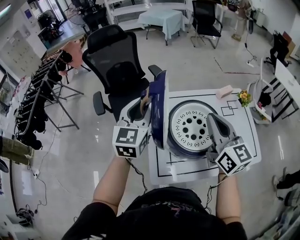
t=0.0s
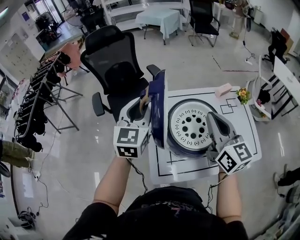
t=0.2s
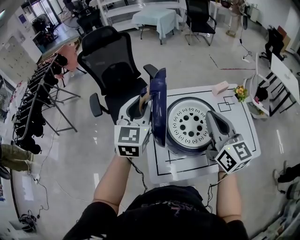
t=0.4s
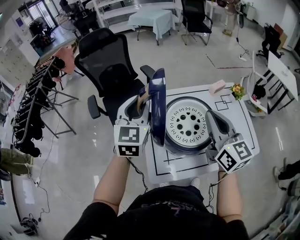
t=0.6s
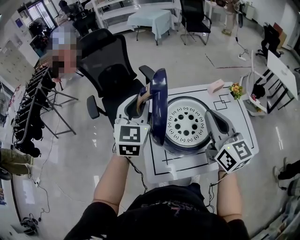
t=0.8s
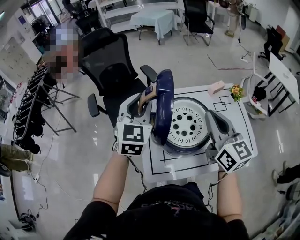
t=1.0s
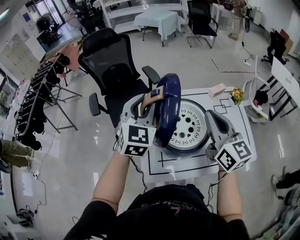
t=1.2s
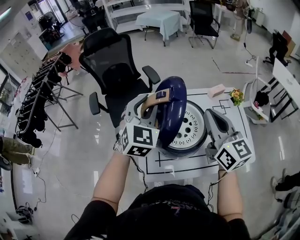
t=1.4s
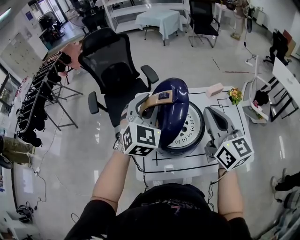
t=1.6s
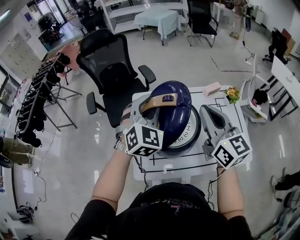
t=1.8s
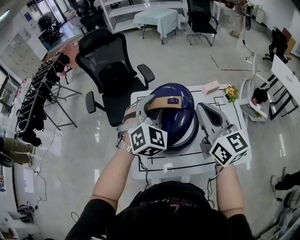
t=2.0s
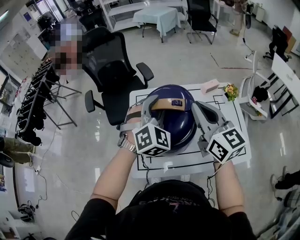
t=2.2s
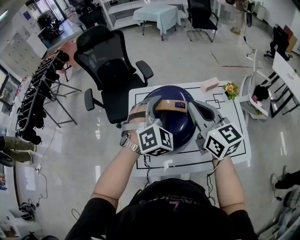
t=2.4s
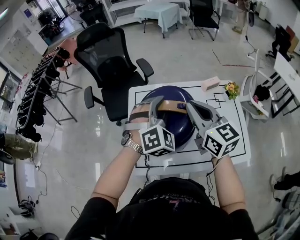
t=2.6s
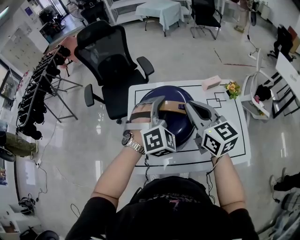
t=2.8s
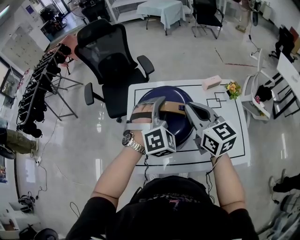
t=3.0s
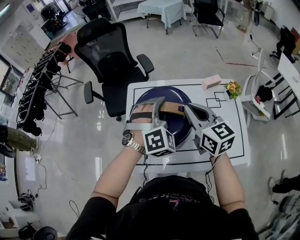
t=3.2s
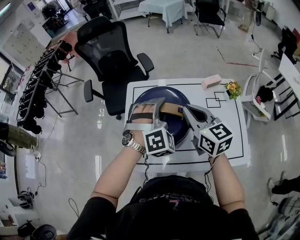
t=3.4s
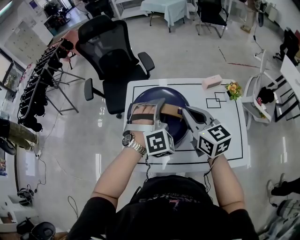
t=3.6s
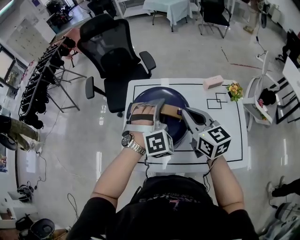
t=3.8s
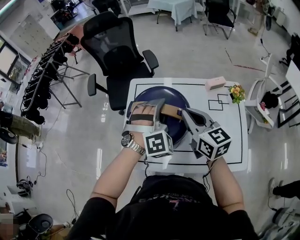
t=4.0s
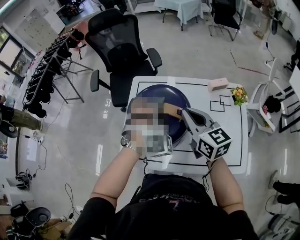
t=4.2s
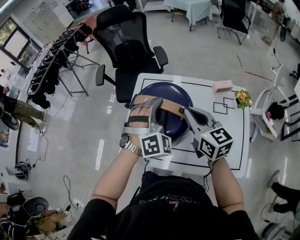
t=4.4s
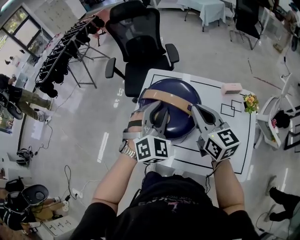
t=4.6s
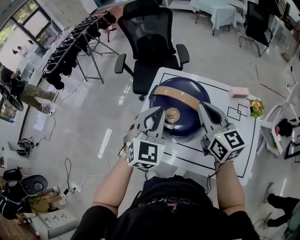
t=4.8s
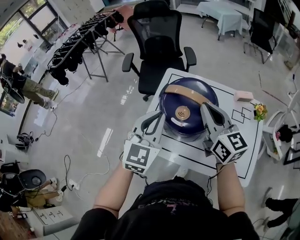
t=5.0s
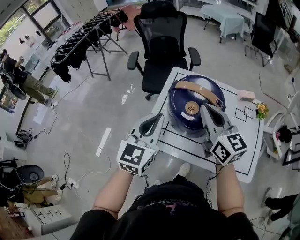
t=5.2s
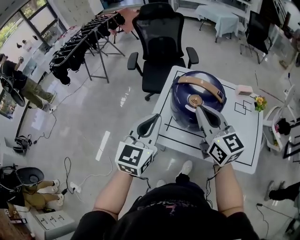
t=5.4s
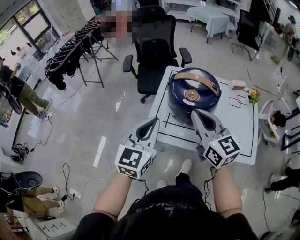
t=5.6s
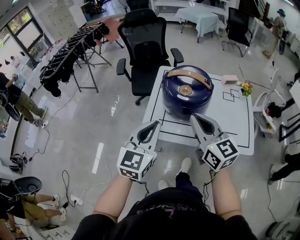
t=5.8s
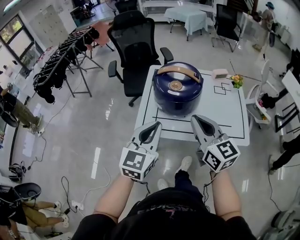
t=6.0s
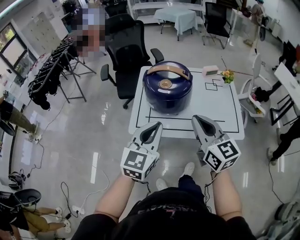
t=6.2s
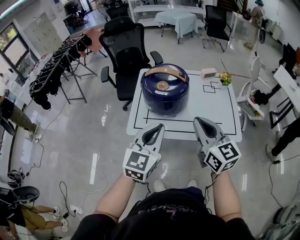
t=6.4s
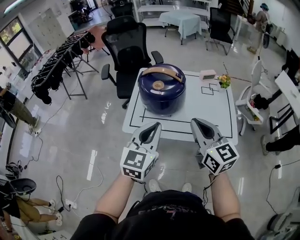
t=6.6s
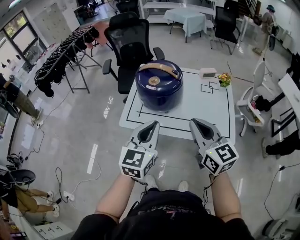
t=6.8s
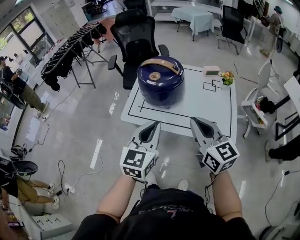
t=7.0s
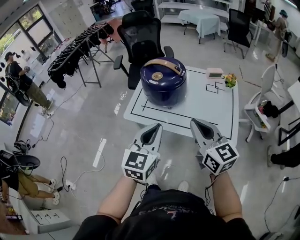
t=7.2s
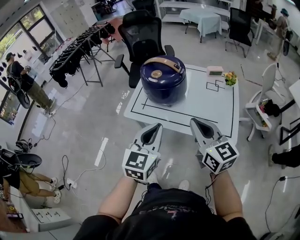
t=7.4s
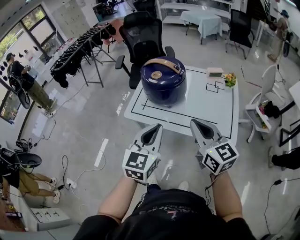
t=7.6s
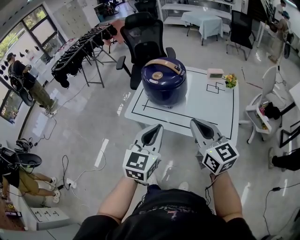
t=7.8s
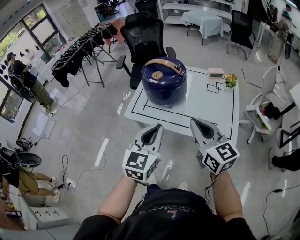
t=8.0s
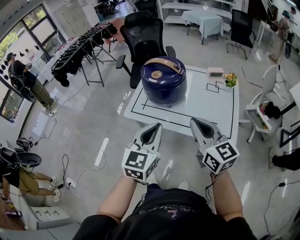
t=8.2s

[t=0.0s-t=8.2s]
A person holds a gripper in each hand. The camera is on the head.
t=0.0s to t=1.6s: The left gripper travels to the right by about 10 cm, and changes its angle by roughly 30 degrees, while the right gripper moves to the right, some 10 cm.
t=1.6s to t=3.2s: The left gripper shifts approximately 15 cm to the right and downward, and rotates some 30 degrees. The right gripper shifts approximately 10 cm downward.
t=3.2s to t=5.0s: The right gripper is displaced to the left by roughly 5 cm. Meanwhile the left gripper moves to the left and backward, some 15 cm, twists about 50 degrees counterclockwise, seen from behind, and closes its fingers.
t=5.0s to t=6.6s: Both grippers travel together backward, approximately 25 cm.
t=6.6s to t=8.2s: The right gripper is displaced to the right and backward by roughly 10 cm. Meanwhile the left gripper goes roughly 10 cm backward and to the right.

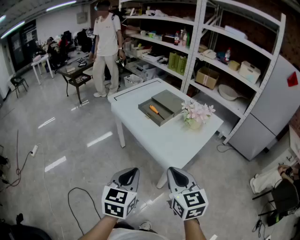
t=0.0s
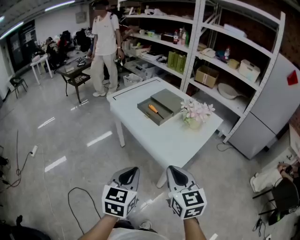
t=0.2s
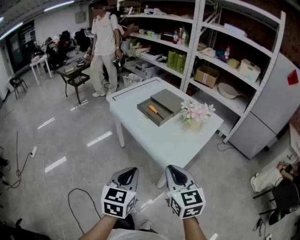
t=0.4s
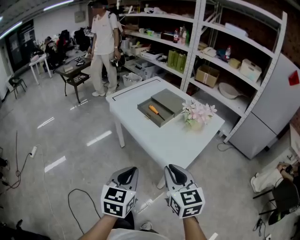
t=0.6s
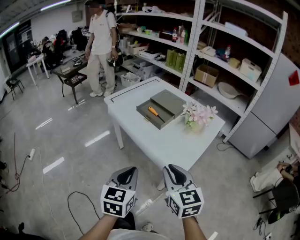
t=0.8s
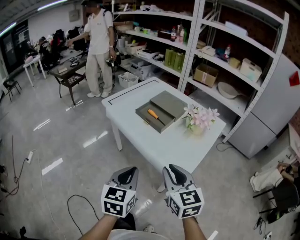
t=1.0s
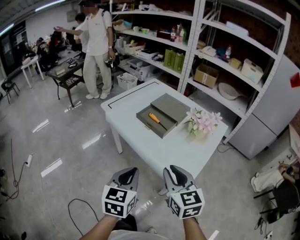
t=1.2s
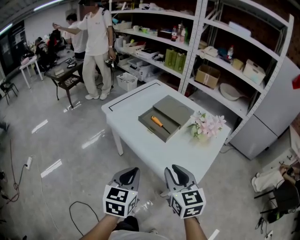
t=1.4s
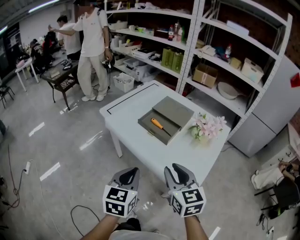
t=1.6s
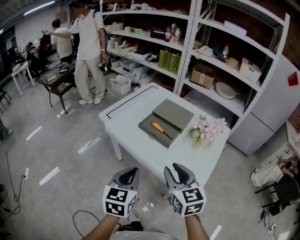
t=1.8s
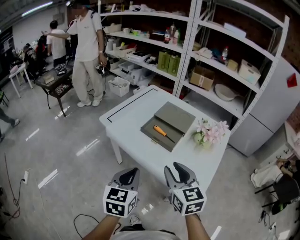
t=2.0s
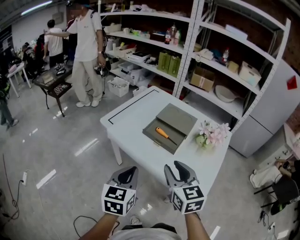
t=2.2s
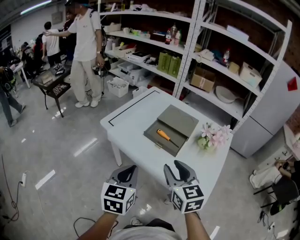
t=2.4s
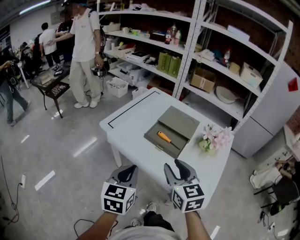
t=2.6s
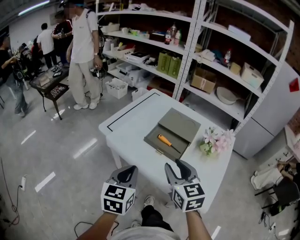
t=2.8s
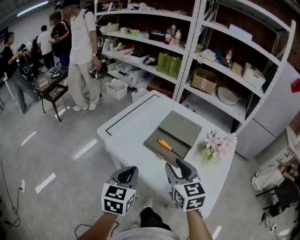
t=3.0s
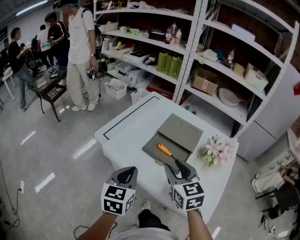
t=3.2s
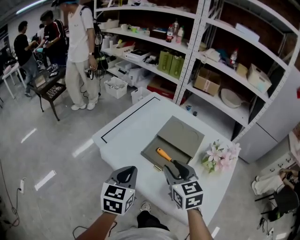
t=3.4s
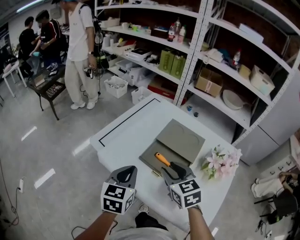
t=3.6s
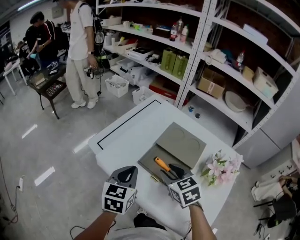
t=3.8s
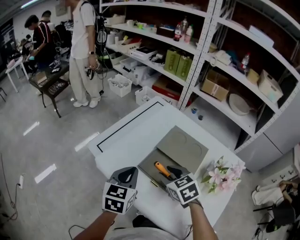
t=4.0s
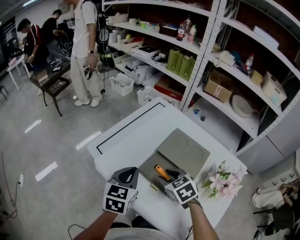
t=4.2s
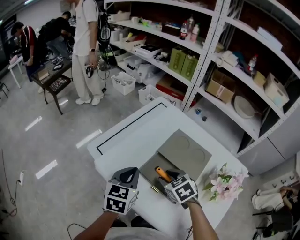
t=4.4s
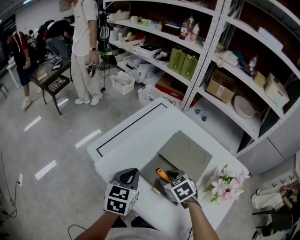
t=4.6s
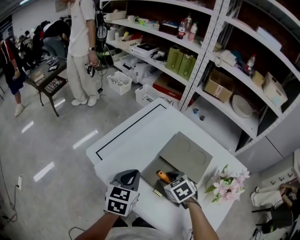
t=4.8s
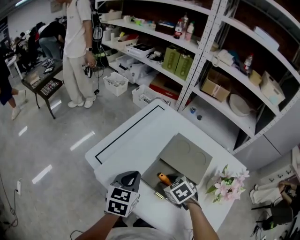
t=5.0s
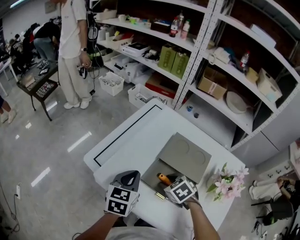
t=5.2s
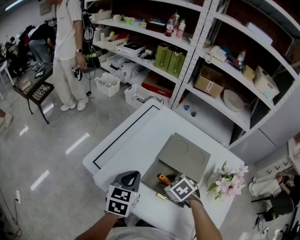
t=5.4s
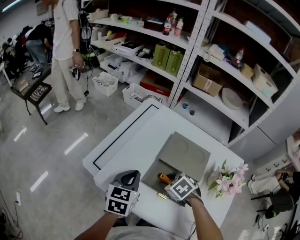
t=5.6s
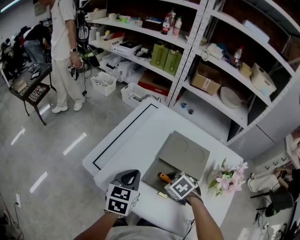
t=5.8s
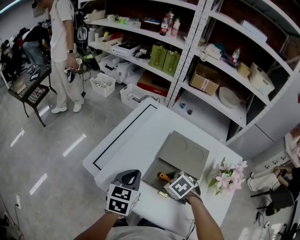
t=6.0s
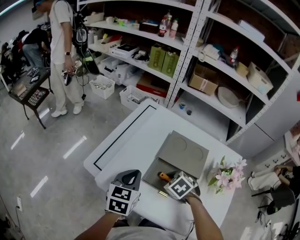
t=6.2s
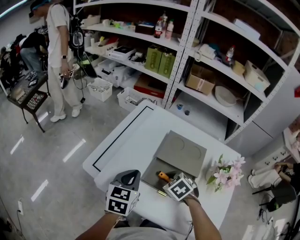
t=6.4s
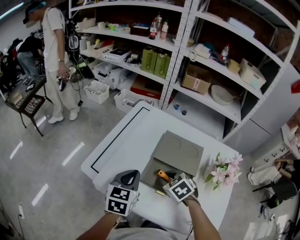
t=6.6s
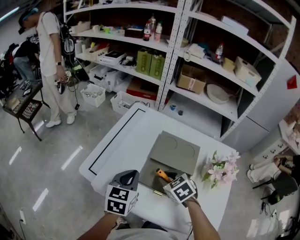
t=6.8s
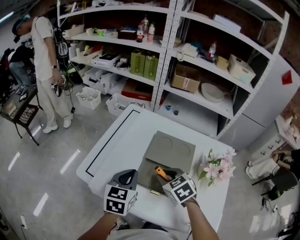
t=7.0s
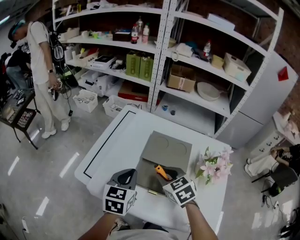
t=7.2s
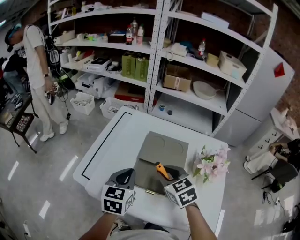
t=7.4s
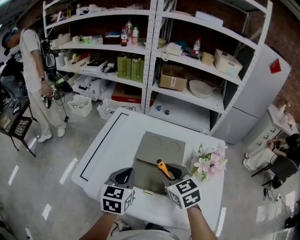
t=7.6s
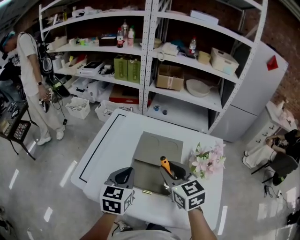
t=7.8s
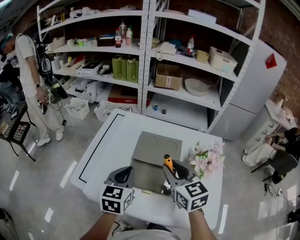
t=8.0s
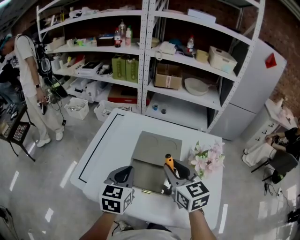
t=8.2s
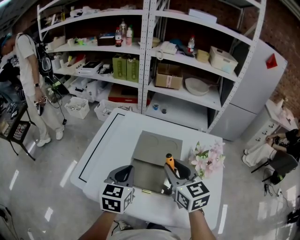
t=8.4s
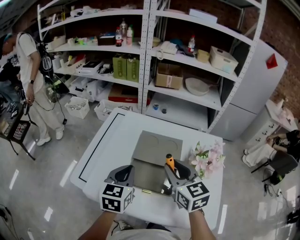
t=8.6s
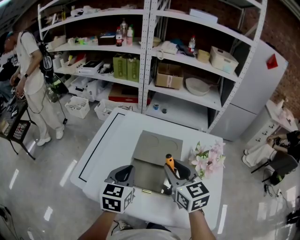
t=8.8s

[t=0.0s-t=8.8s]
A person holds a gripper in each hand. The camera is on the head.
t=0.0s to t=1.4s: The two grippers go approximately 15 cm forward. The right gripper opens up.
t=1.4s to t=3.0s: The grippers both shift forward and to the left by some 20 cm.
t=3.0s to t=4.4s: The left gripper goes approximately 20 cm forward; the right gripper moves forward and downward, some 25 cm, and angles its fingers downward, by about 30 degrees.
t=4.4s to t=5.8s: The left gripper changes place by roughly 5 cm.
t=5.8s to t=7.4s: The left gripper goes approximately 5 cm to the right. The right gripper goes some 15 cm upward, and points its fingers some 30 degrees further upward.
t=7.4s to t=8.8s: The right gripper shifts approximately 10 cm upward and to the right, and turns by some 20 degrees.

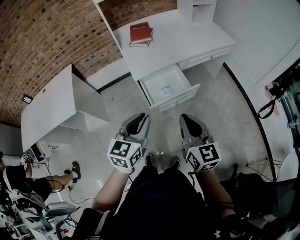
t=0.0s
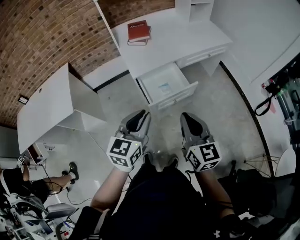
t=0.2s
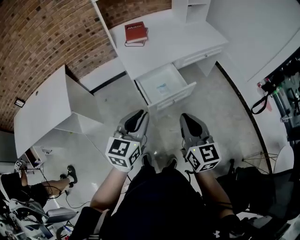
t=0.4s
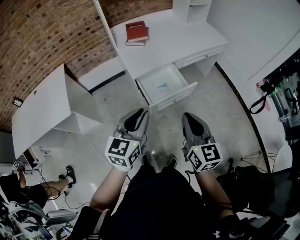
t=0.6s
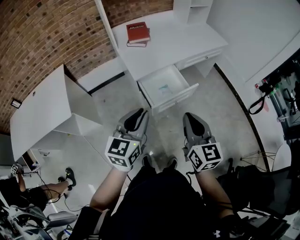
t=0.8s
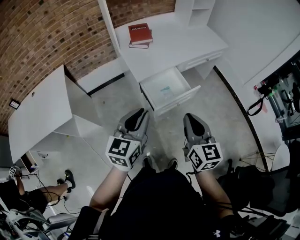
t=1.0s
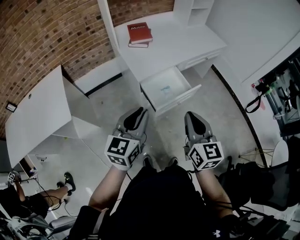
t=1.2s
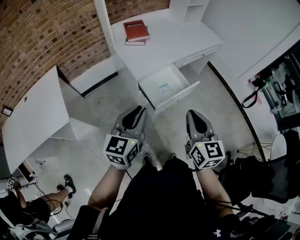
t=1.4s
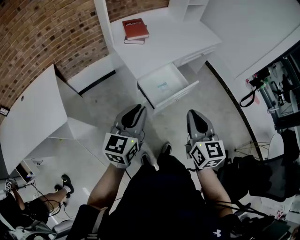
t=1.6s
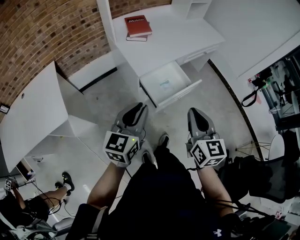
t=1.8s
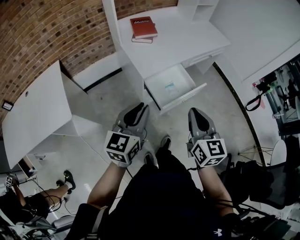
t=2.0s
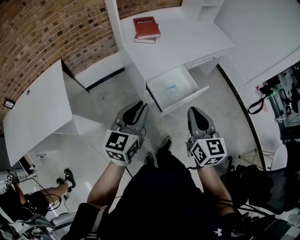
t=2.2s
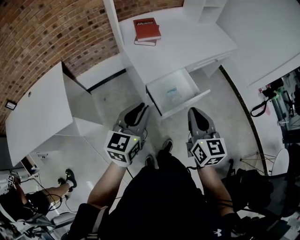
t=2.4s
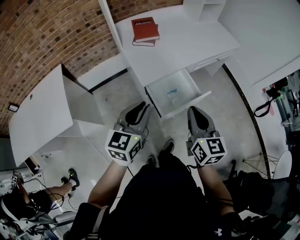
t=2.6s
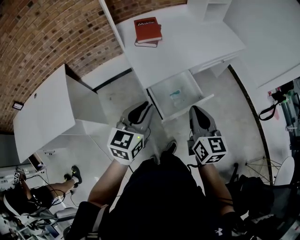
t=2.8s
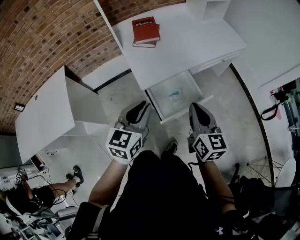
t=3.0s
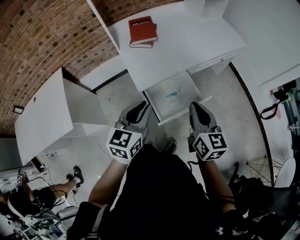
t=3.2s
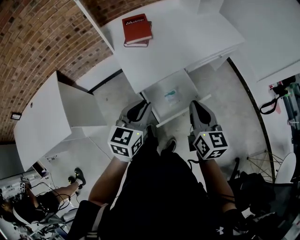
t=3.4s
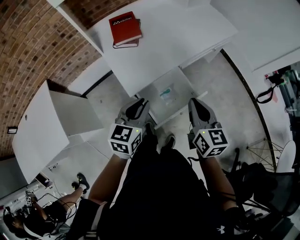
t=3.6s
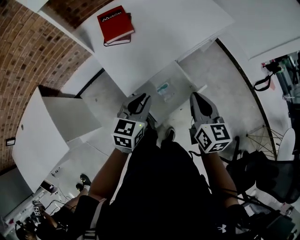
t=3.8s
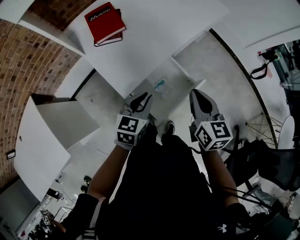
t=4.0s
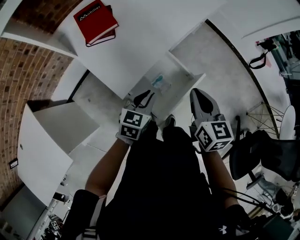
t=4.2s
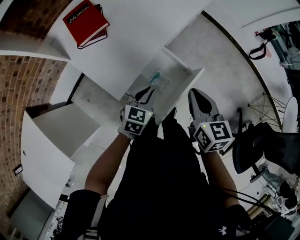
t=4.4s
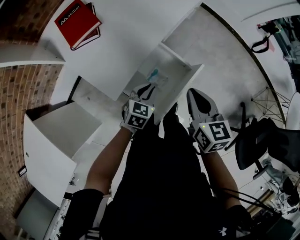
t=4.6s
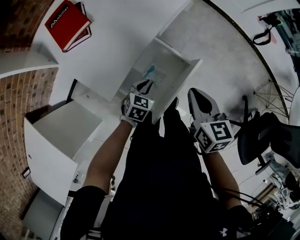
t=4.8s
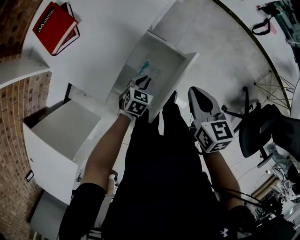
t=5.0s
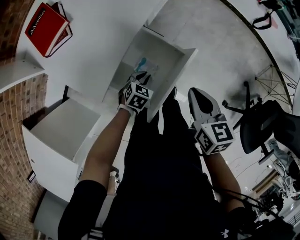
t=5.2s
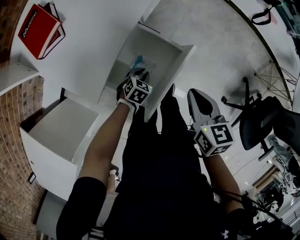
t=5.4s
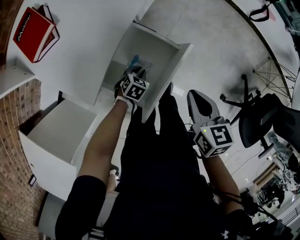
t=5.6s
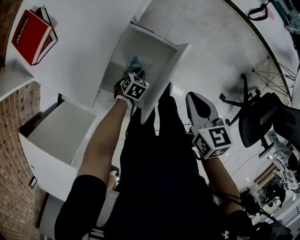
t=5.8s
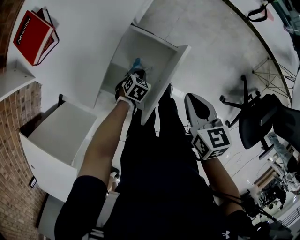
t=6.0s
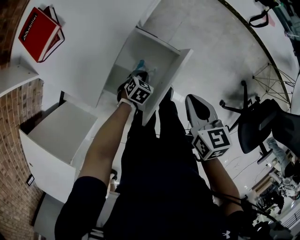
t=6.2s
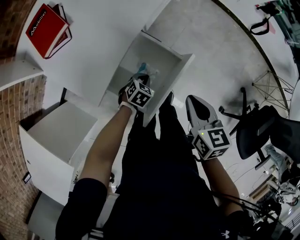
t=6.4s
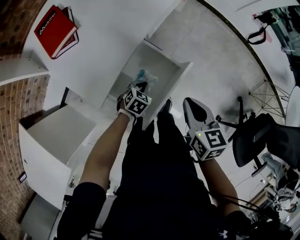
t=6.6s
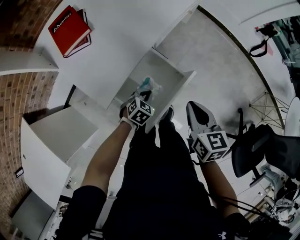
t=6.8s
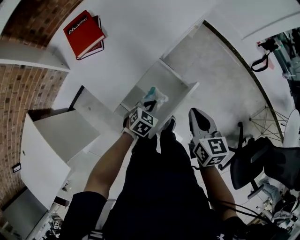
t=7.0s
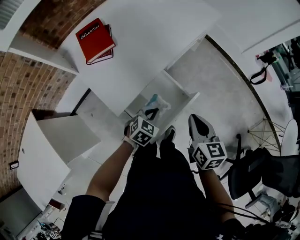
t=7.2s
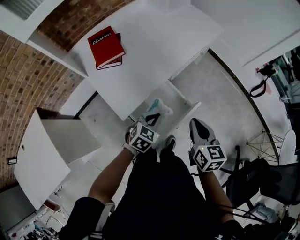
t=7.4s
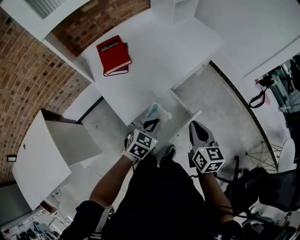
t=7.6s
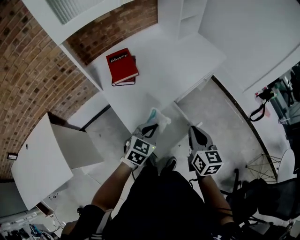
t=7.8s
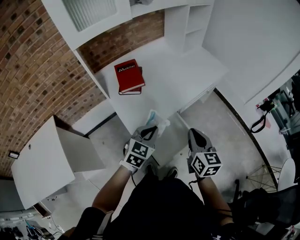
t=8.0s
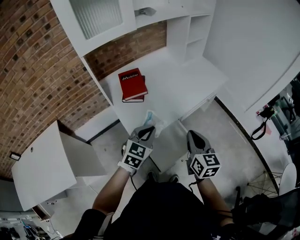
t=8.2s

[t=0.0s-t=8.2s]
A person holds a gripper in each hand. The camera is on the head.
t=0.0s to t=1.6s: Both grippers travel together to the left, roughly 15 cm.
t=1.6s to t=3.2s: The grippers both shift forward by some 15 cm.
t=3.2s to t=5.0s: The left gripper is displaced downward by roughly 40 cm, and tilts its fingers some 40 degrees downward, while the right gripper is displaced downward by approximately 15 cm, and swivels some 30 degrees.
t=5.0s to t=6.6s: The left gripper moves roughly 10 cm downward and comes back.
t=6.6s to t=8.2s: The left gripper is displaced upward by about 40 cm, and tilts its fingers roughly 40 degrees upward. The right gripper heads upward and to the left, covering approximately 20 cm, and changes its angle by approximately 30 degrees.
